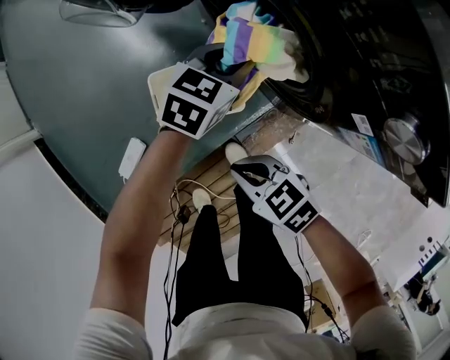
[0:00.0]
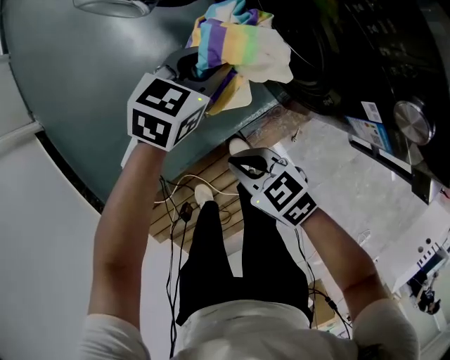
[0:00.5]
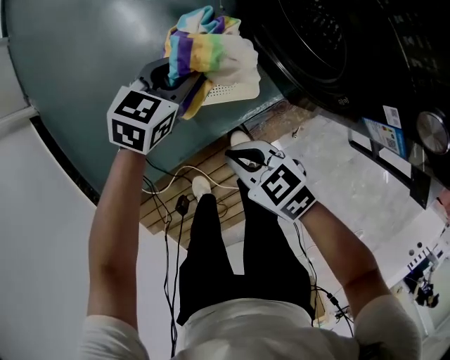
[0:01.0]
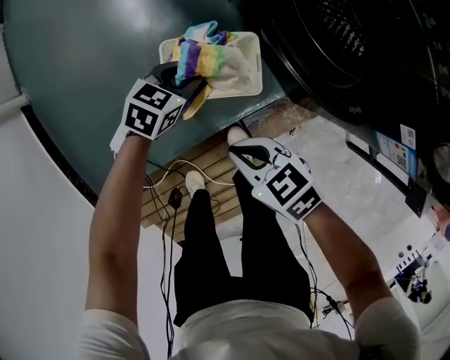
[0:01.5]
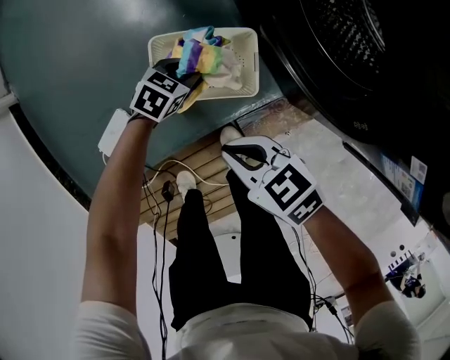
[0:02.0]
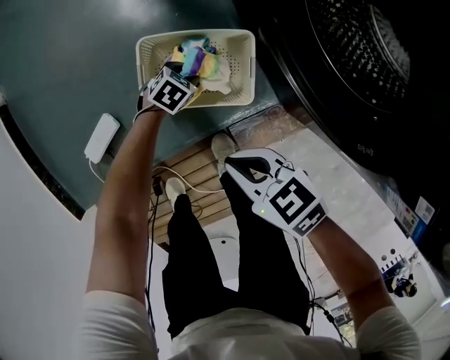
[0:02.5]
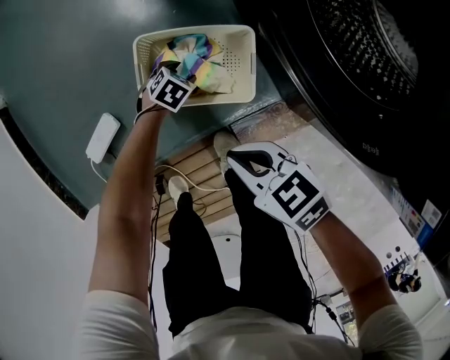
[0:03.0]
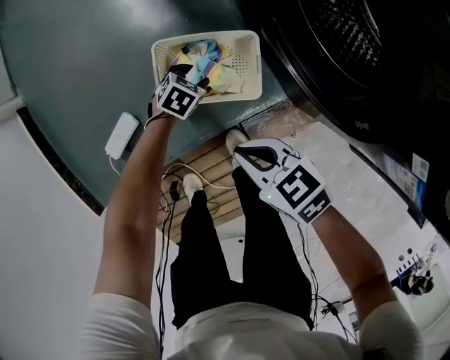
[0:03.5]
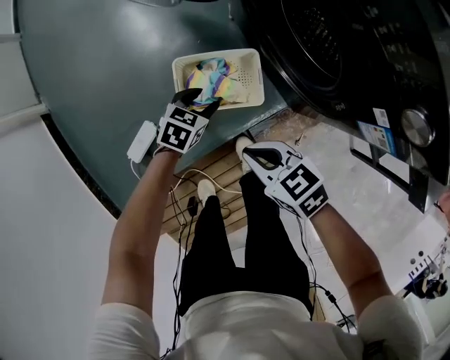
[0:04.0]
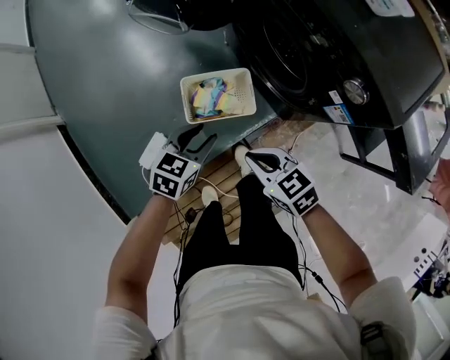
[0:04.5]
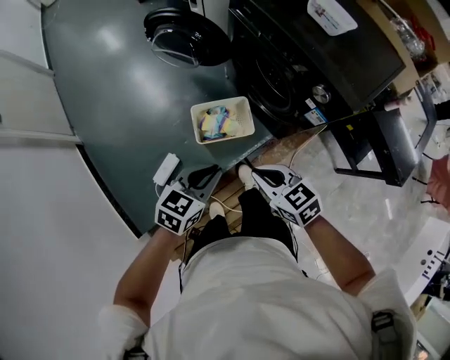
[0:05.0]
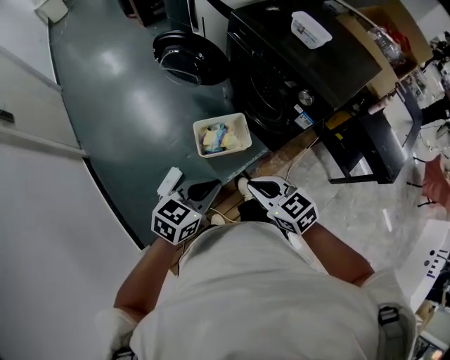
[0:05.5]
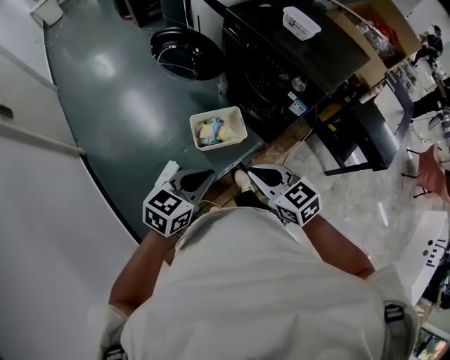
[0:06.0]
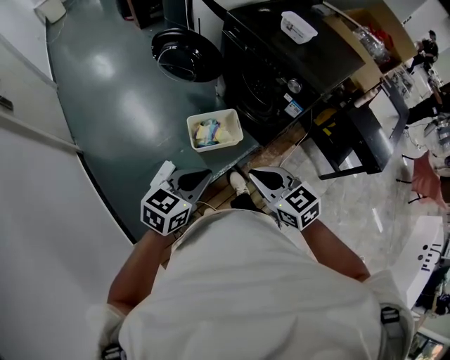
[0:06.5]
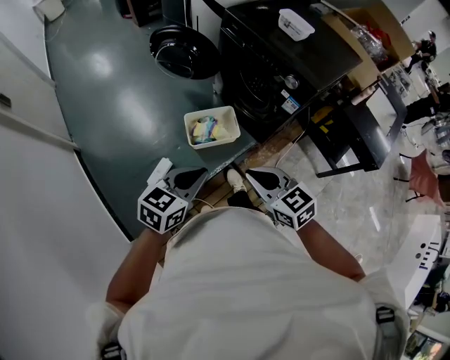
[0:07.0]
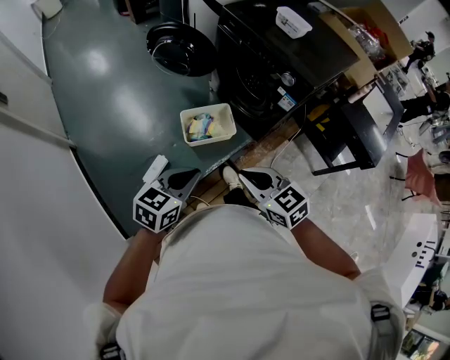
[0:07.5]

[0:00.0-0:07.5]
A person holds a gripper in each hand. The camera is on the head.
0:00.0 to 0:02.0: The left gripper is displaced downward by some 25 cm, and turns by some 20 degrees. Meanwhile the right gripper is displaced downward by approximately 5 cm.
0:02.0 to 0:04.0: The two grippers go about 10 cm upward.
0:04.0 to 0:05.5: The right gripper shifts roughly 35 cm upward and backward, and turns by about 20 degrees, while the left gripper shifts about 50 cm upward and backward, turns by approximately 20 degrees, and closes.
0:05.5 to 0:07.5: Both grippers move backward, approximately 10 cm.

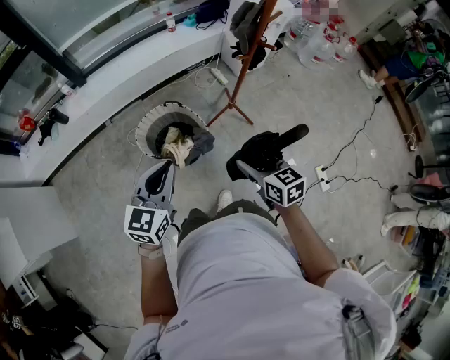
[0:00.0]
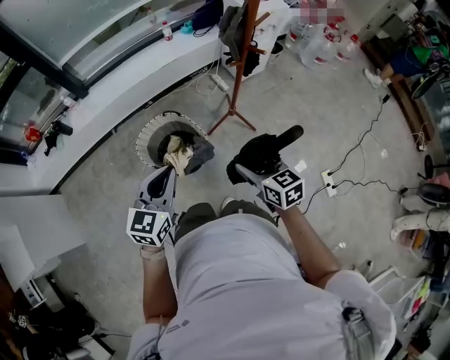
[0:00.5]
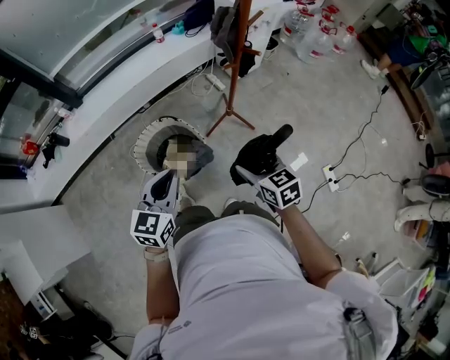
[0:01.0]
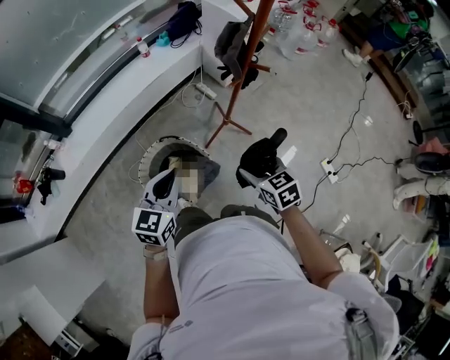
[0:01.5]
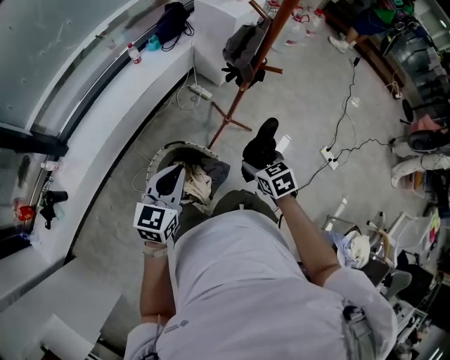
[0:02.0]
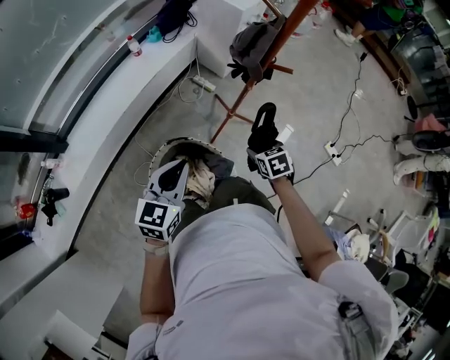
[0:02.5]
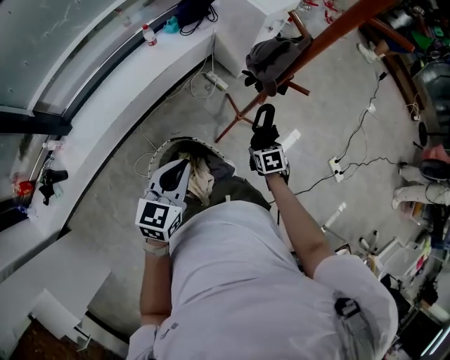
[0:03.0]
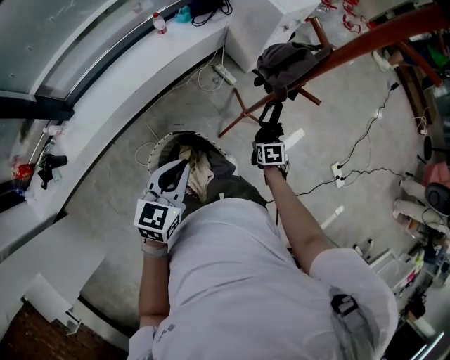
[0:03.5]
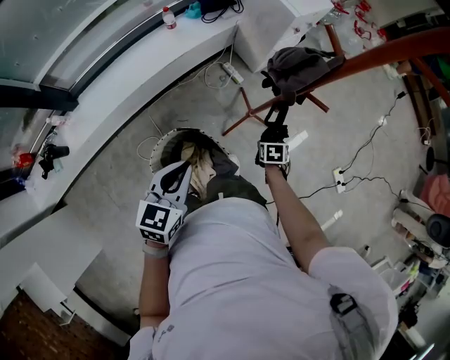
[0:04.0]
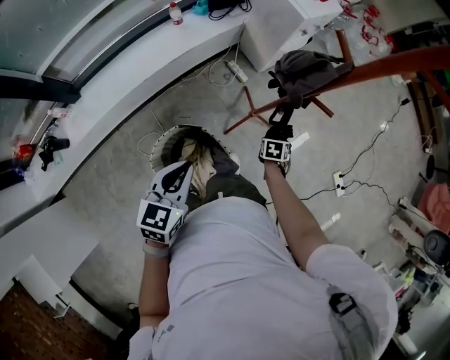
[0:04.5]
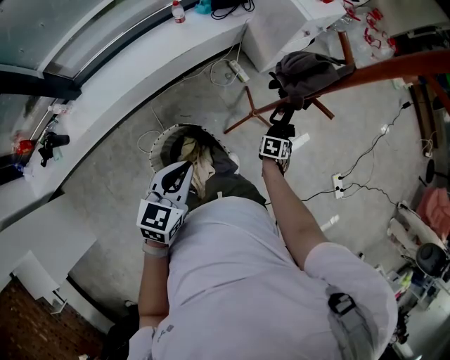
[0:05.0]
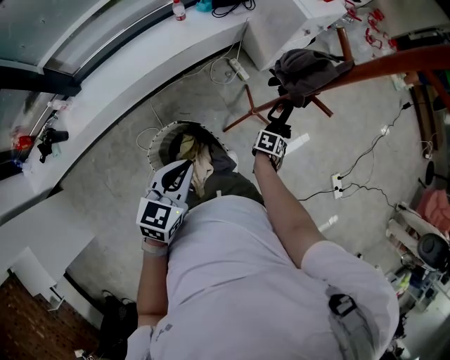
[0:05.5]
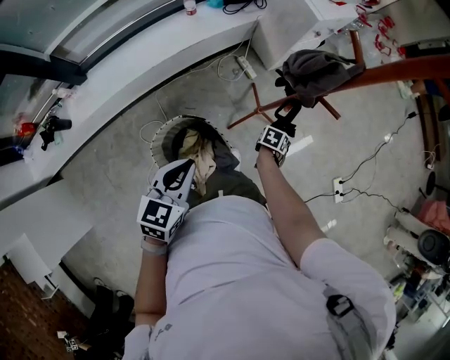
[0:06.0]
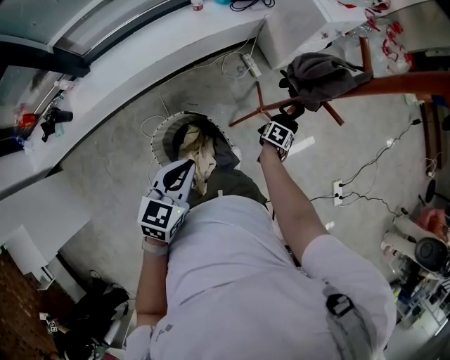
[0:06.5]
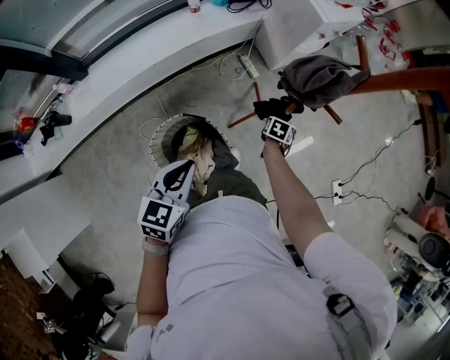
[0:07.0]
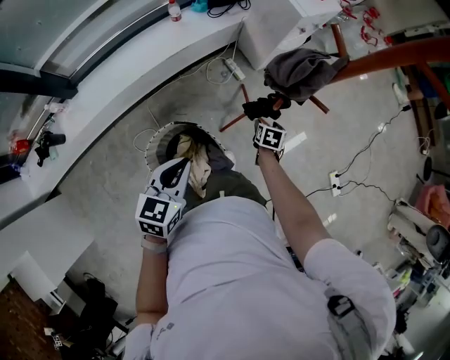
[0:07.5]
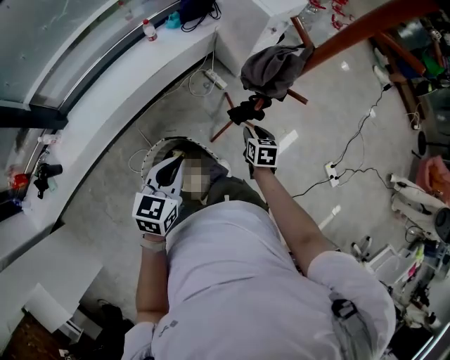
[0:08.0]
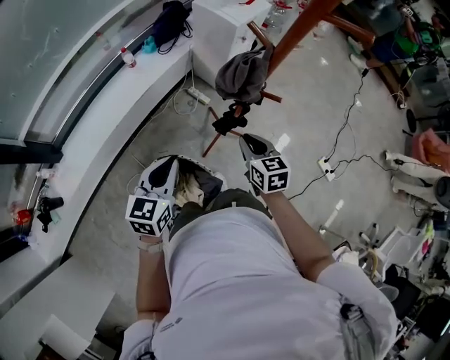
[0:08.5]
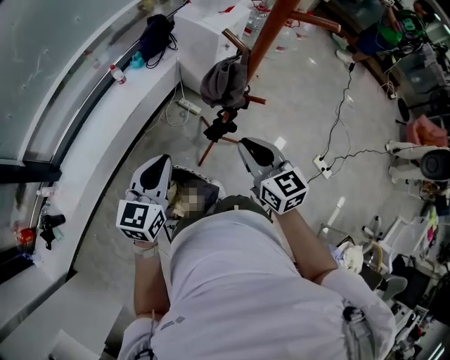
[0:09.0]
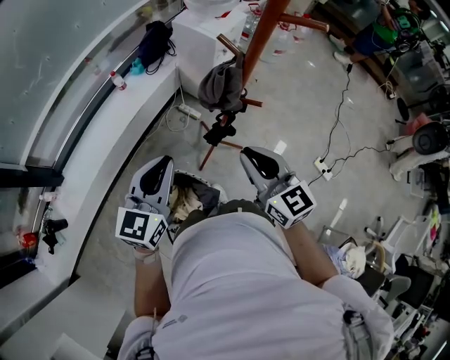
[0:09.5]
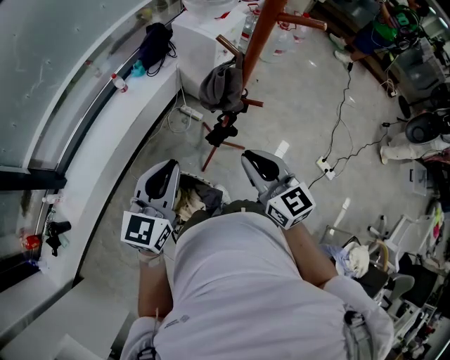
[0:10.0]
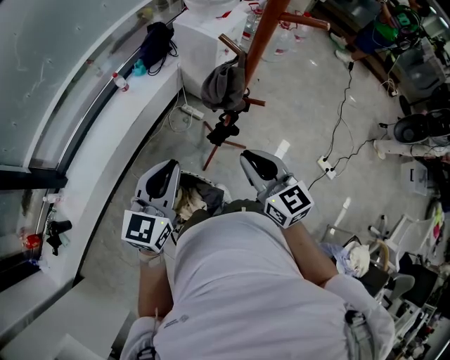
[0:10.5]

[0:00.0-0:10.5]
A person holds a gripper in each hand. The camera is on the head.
0:00.0 to 0:02.0: The left gripper changes place by approximately 30 cm, and rotates some 30 degrees. The right gripper shifts by roughly 25 cm, and changes its angle by approximately 30 degrees.
0:02.0 to 0:04.0: The left gripper is displaced forward by approximately 10 cm. The right gripper goes approximately 25 cm downward and forward, and turns by about 30 degrees.
0:04.0 to 0:06.5: The right gripper goes roughly 5 cm forward.
0:06.5 to 0:08.5: The left gripper moves forward, approximately 10 cm, while the right gripper shifts approximately 30 cm upward, angles its fingers upward, by roughly 30 degrees, and closes.
0:08.5 to 0:10.5: The right gripper heads upward and backward, covering about 15 cm, and changes its angle by about 20 degrees. The left gripper heads upward, covering about 10 cm.

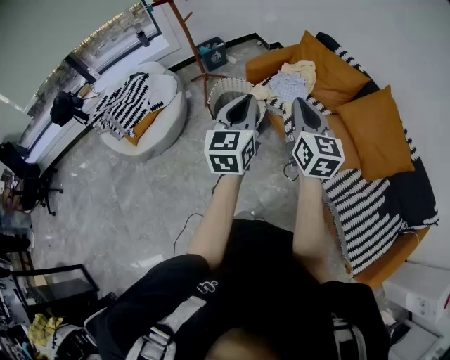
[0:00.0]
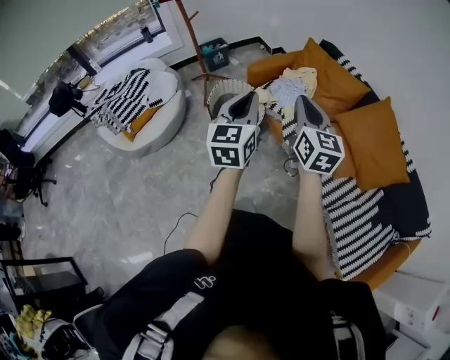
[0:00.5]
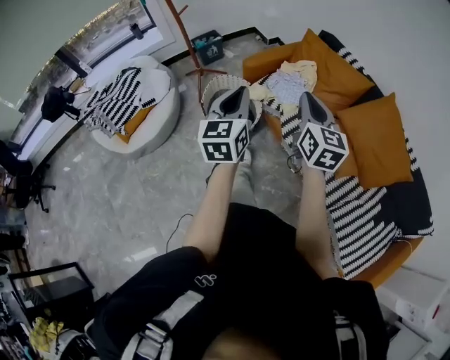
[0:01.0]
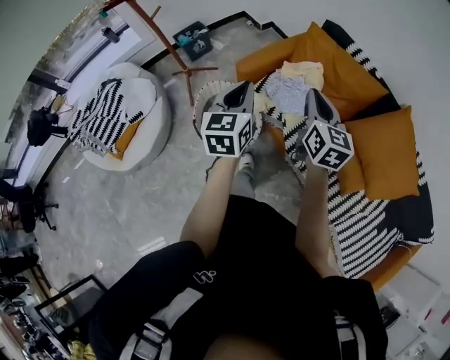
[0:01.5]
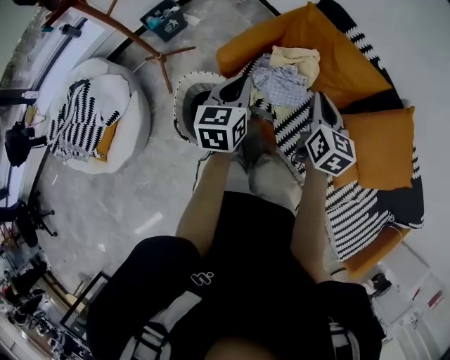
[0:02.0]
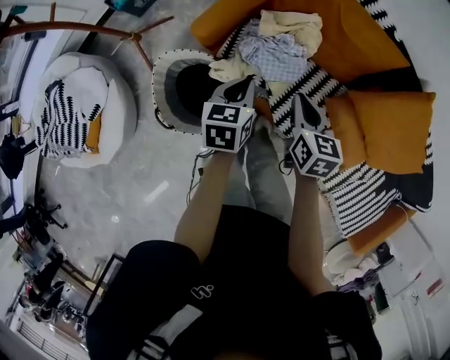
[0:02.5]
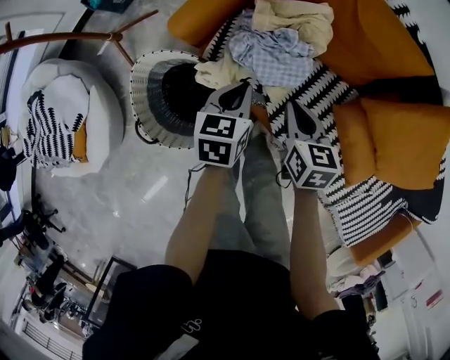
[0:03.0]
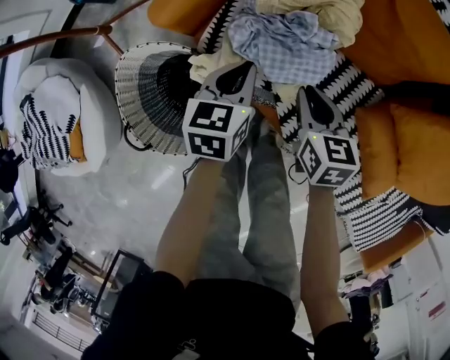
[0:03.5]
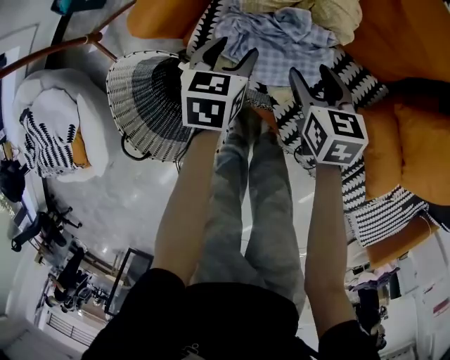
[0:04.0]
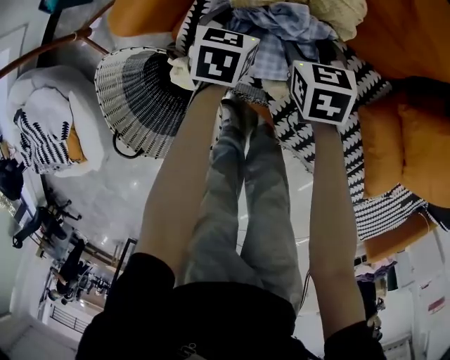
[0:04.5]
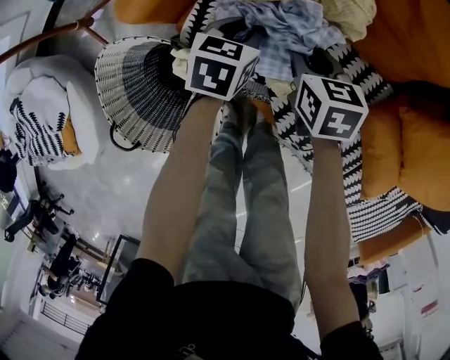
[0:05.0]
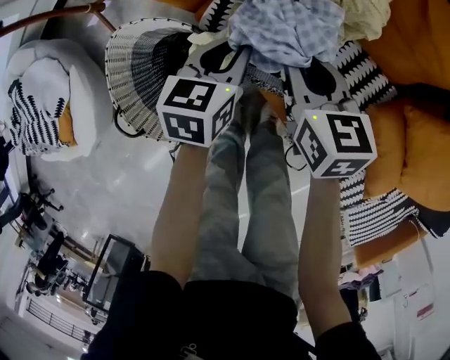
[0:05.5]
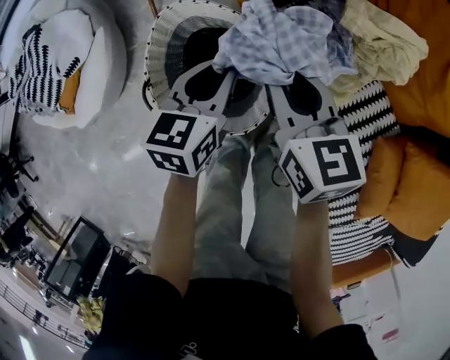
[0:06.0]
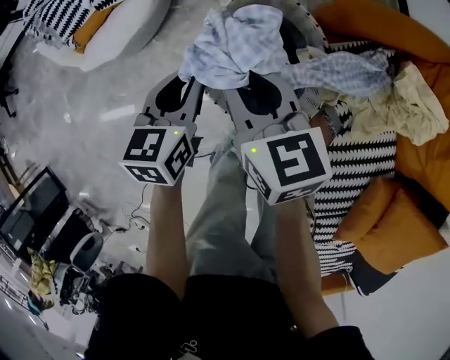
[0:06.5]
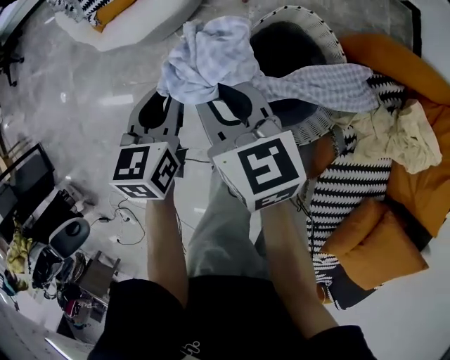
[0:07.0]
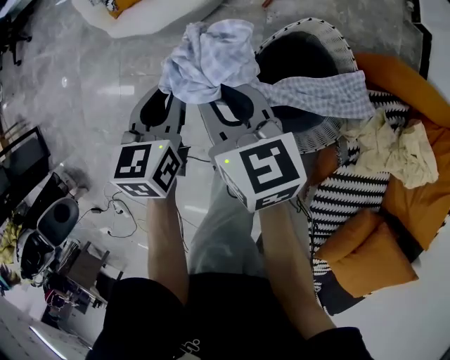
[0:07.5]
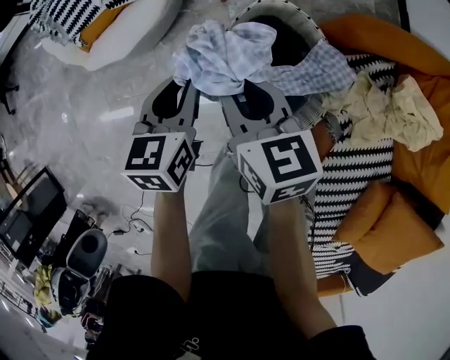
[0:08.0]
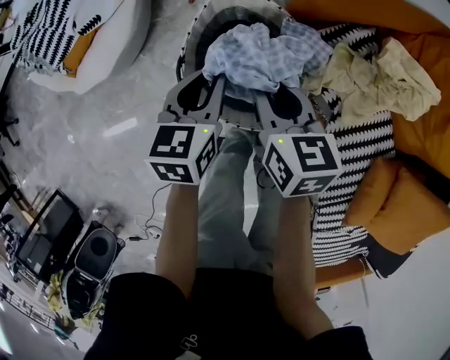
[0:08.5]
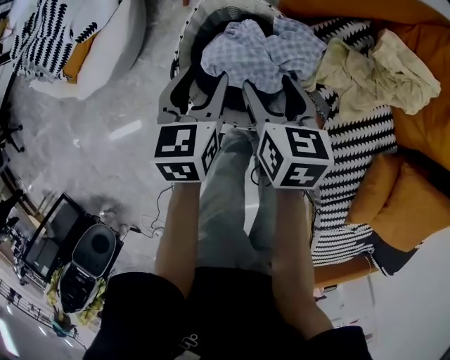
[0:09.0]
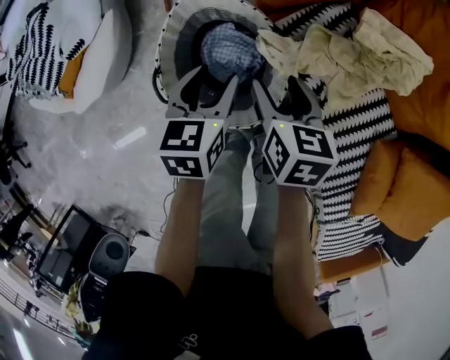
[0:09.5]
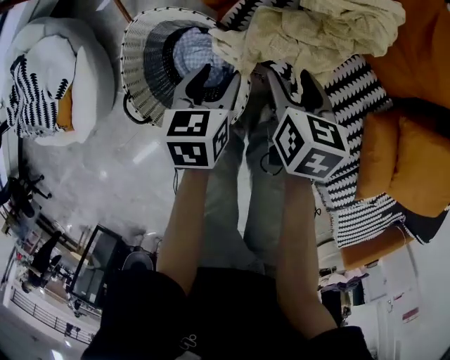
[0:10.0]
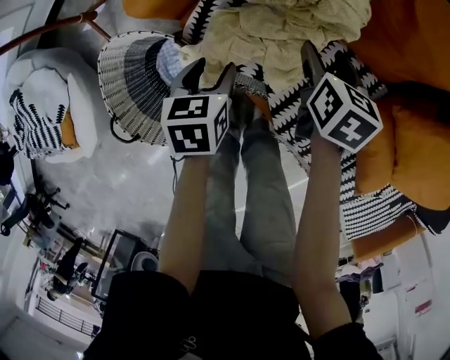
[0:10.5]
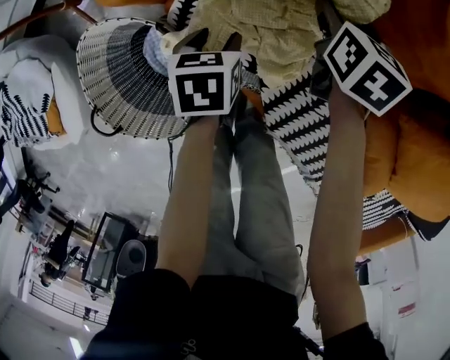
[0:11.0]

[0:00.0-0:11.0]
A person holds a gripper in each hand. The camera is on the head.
0:00.0 to 0:02.0: The pair of grippers is taken forward, approximately 40 cm. Both grippers move downward, about 20 cm. The left gripper turns by some 30 degrees. Meanwhile the right gripper rotates approximately 30 degrees.
0:02.0 to 0:03.5: Both grippers travel together downward, some 35 cm. The right gripper turns by roughly 20 degrees, while the left gripper rotates about 20 degrees.
0:03.5 to 0:05.5: The right gripper goes about 10 cm to the left, reaches approximately 10 cm forward, then returns, and opens, then closes once more; the left gripper moves some 10 cm downward and comes back, and opens and closes again.
0:05.5 to 0:07.5: The pair of grippers is taken roughly 50 cm. The right gripper turns by roughly 60 degrees. Meanwhile the left gripper swivels about 60 degrees.
0:07.5 to 0:09.0: The left gripper ends up about 25 cm from where it was, swivels roughly 30 degrees, and opens its fingers, while the right gripper changes place by approximately 30 cm, swivels some 50 degrees, and opens up.
0:09.0 to 0:11.0: The left gripper changes place by some 35 cm, and changes its angle by approximately 30 degrees, while the right gripper ends up about 50 cm from where it was, and swivels approximately 40 degrees.
